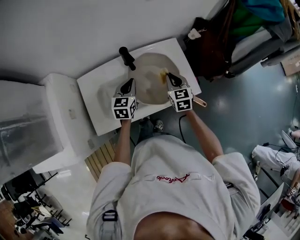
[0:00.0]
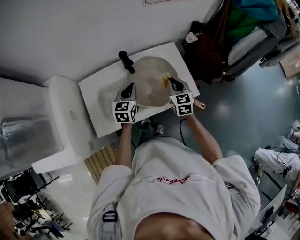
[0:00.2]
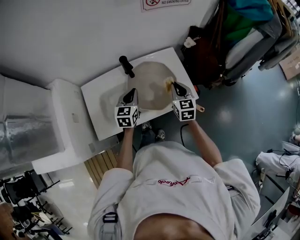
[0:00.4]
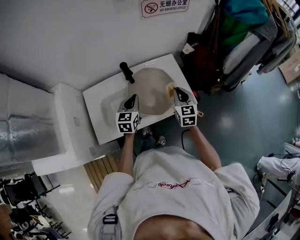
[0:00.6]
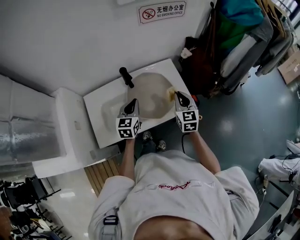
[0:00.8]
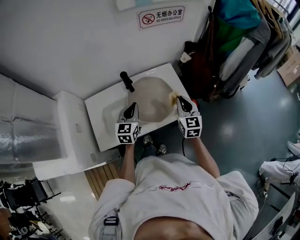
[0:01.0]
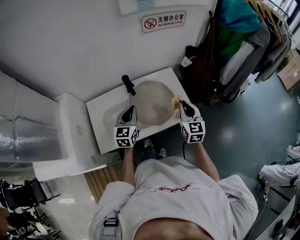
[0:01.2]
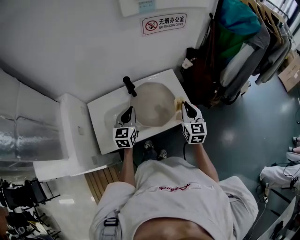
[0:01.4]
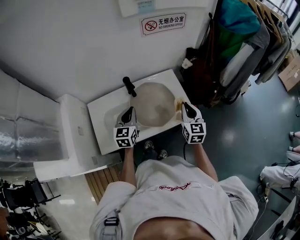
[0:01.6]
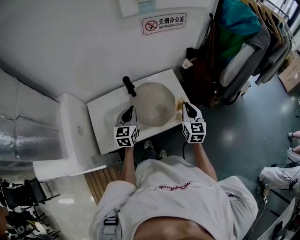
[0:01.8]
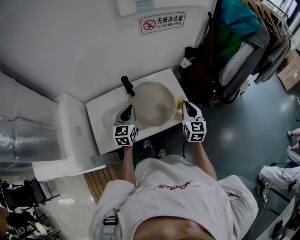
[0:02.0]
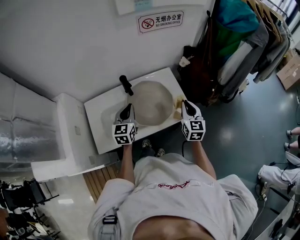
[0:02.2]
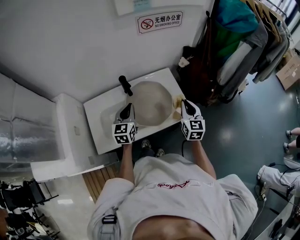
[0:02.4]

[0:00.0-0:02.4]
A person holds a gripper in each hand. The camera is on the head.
0:00.0 to 0:01.2: The left gripper heads upward and backward, covering about 10 cm. The right gripper heads upward, to the right and backward, covering about 15 cm.
0:01.2 to 0:02.4: The grippers make only small movements.

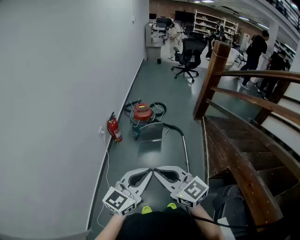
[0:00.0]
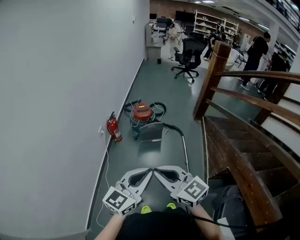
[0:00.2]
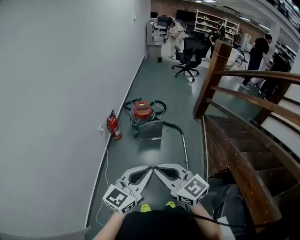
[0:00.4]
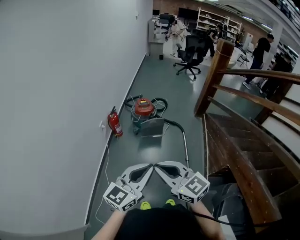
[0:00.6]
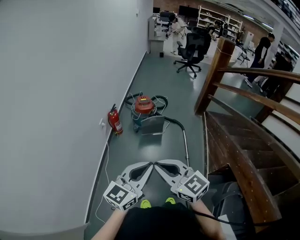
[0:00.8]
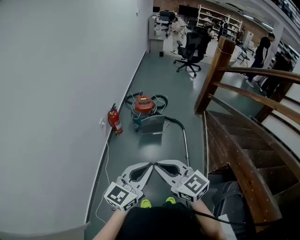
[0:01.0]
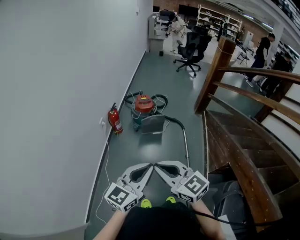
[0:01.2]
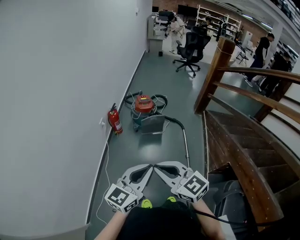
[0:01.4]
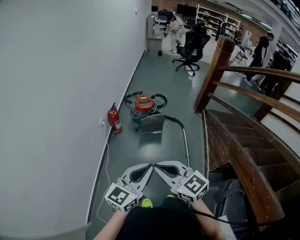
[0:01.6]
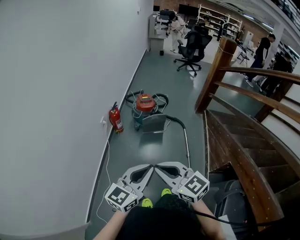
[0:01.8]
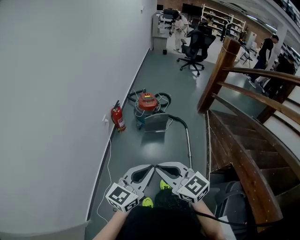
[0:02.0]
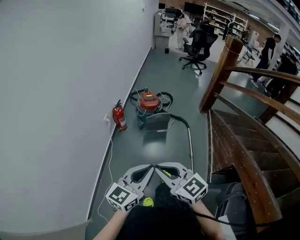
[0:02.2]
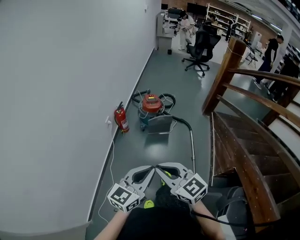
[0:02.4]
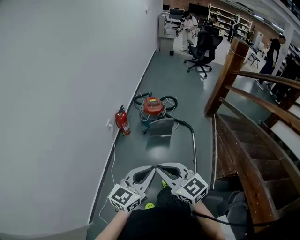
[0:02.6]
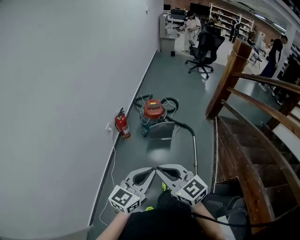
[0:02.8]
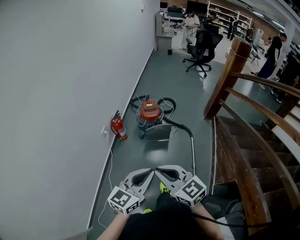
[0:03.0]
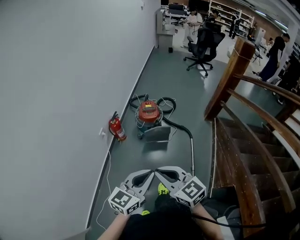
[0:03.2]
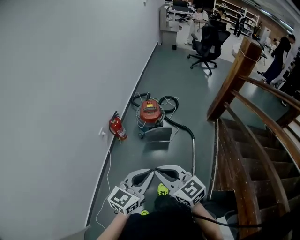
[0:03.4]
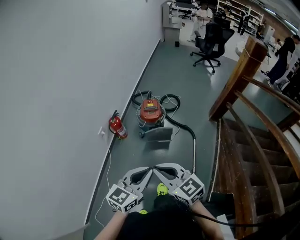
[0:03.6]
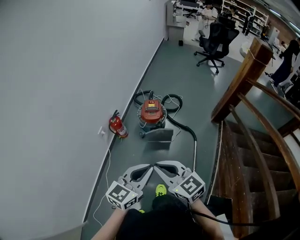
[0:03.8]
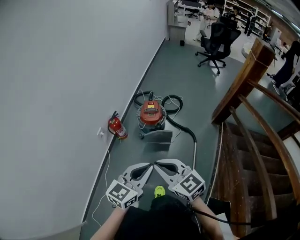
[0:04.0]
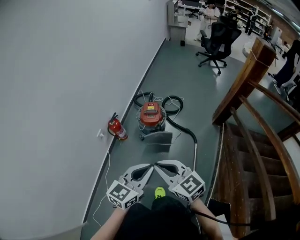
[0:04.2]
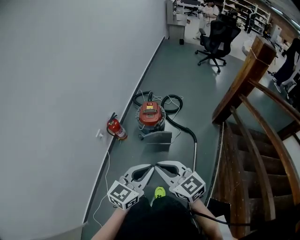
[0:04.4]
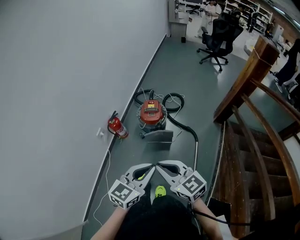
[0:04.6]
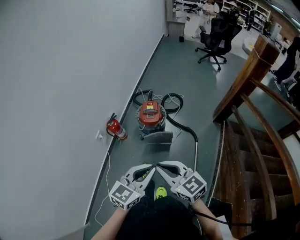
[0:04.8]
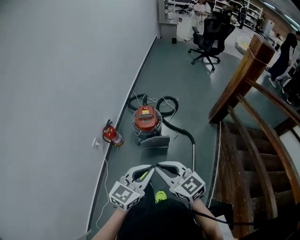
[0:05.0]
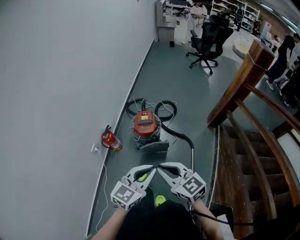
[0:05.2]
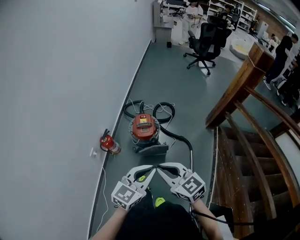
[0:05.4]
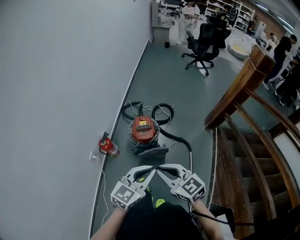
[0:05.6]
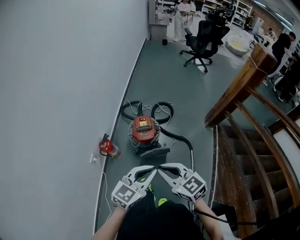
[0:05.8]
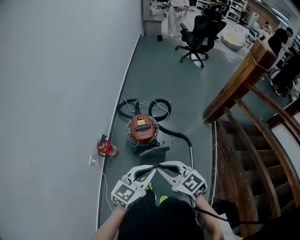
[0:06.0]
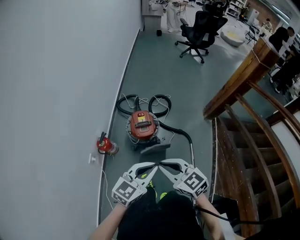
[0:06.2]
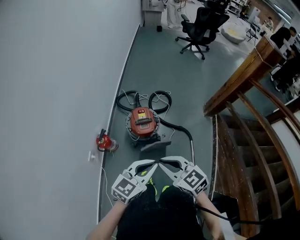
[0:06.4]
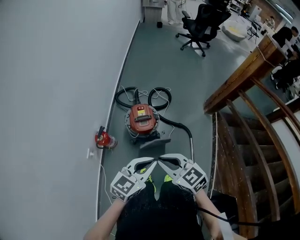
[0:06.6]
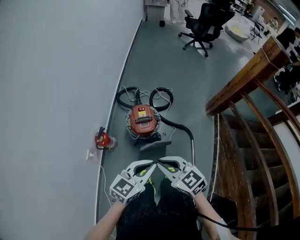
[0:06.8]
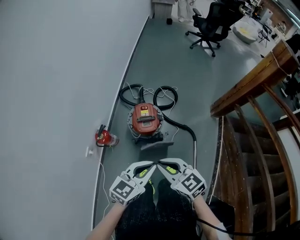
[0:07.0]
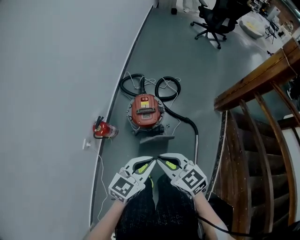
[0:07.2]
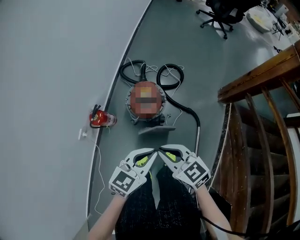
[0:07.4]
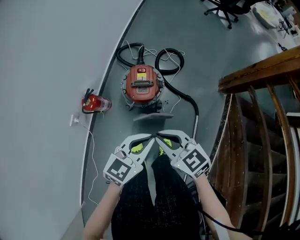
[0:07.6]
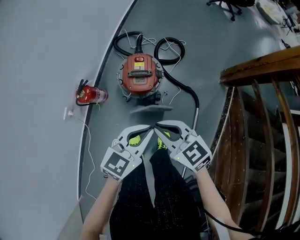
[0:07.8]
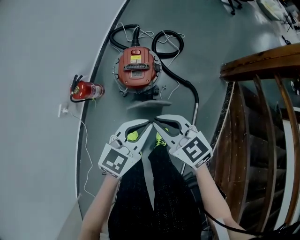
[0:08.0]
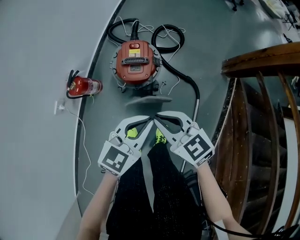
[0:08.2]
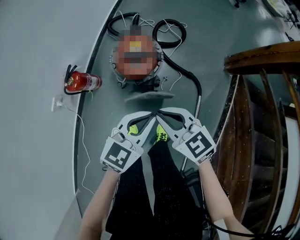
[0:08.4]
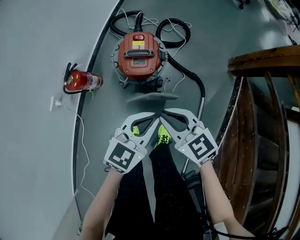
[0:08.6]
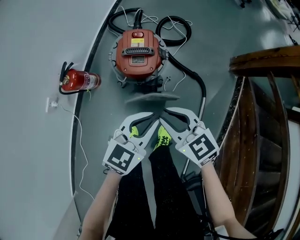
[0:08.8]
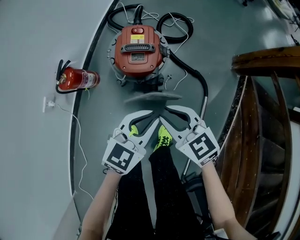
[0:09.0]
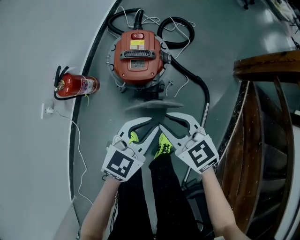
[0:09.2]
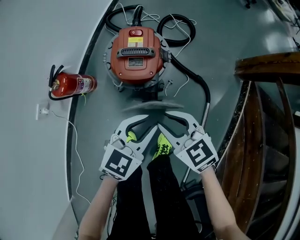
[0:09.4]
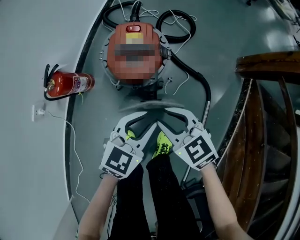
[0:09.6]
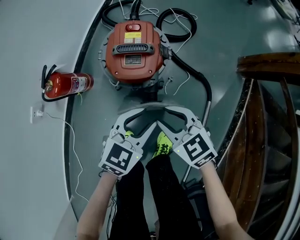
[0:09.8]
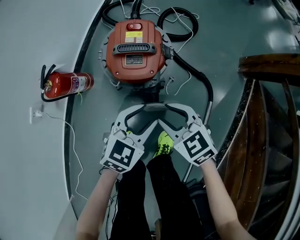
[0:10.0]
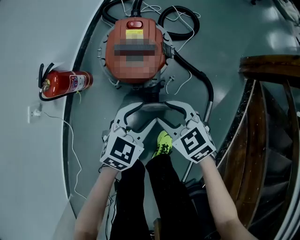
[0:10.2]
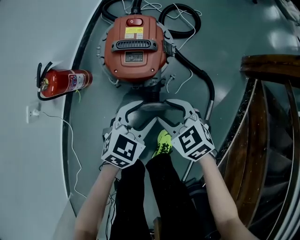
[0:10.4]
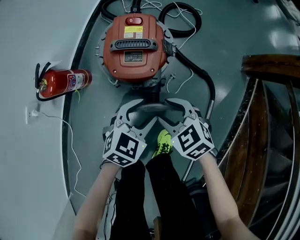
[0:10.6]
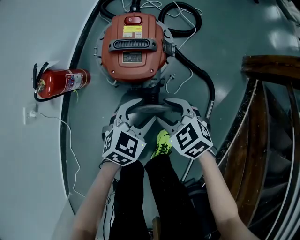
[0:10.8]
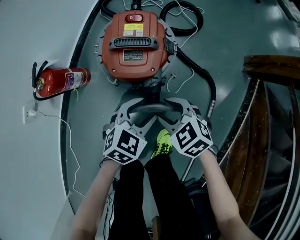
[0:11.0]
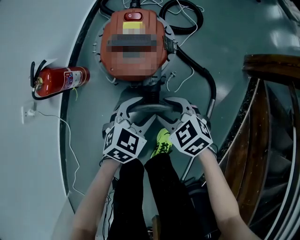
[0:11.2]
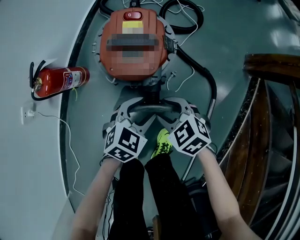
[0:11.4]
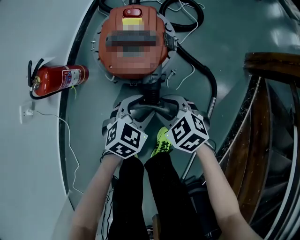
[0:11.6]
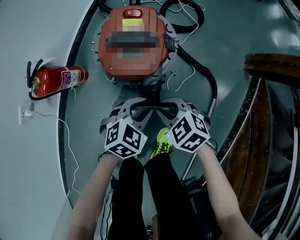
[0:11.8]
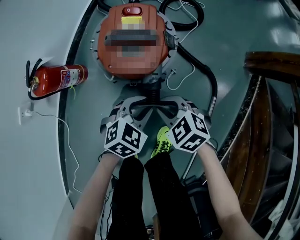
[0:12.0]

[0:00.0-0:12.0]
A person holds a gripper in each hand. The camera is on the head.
0:00.0 to 0:01.6: The grippers stay close to where they were, moving slightly.
0:01.6 to 0:03.0: Both grippers travel together forward, approximately 15 cm.
0:03.0 to 0:04.4: Both grippers move forward and to the right, some 20 cm.
0:04.4 to 0:06.0: The two grippers go some 15 cm forward.
0:06.0 to 0:07.6: The two grippers go roughly 20 cm downward and forward.
0:07.6 to 0:09.0: The grippers both shift downward by approximately 20 cm.
0:09.0 to 0:10.4: Both grippers travel together downward, roughly 15 cm. The right gripper opens. The left gripper opens.
0:10.4 to 0:12.0: Both grippers travel together downward, approximately 5 cm. The right gripper closes; the left gripper closes its fingers.

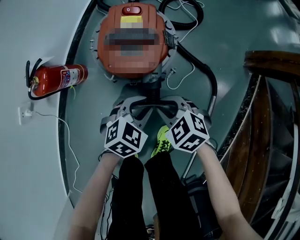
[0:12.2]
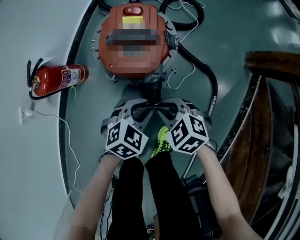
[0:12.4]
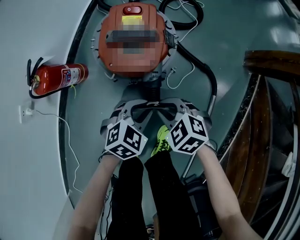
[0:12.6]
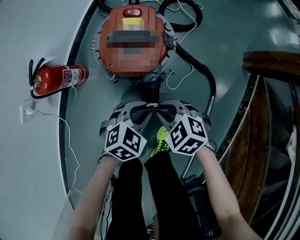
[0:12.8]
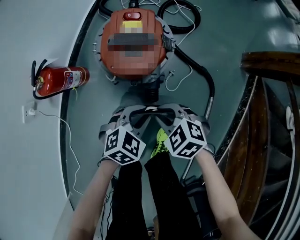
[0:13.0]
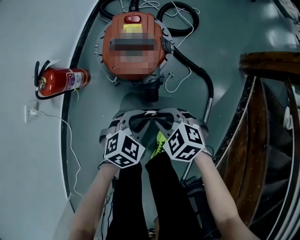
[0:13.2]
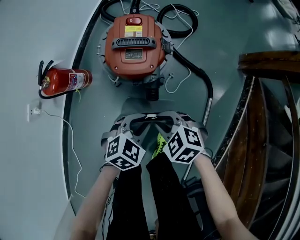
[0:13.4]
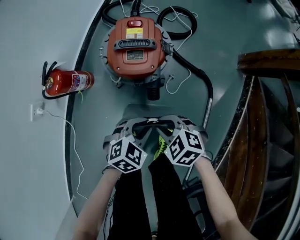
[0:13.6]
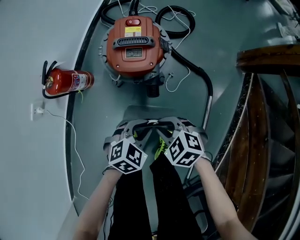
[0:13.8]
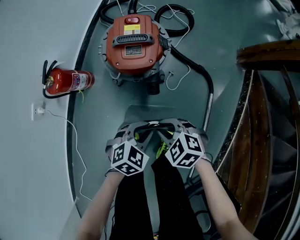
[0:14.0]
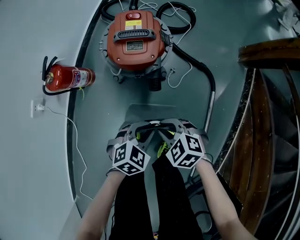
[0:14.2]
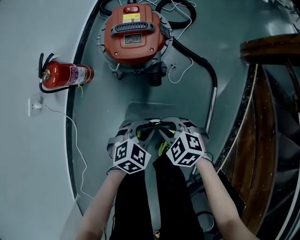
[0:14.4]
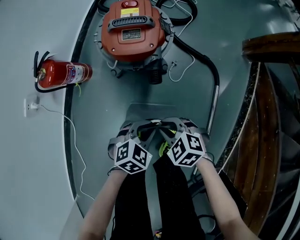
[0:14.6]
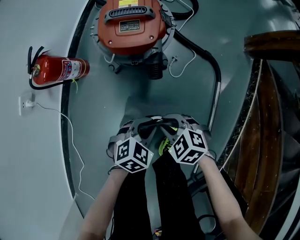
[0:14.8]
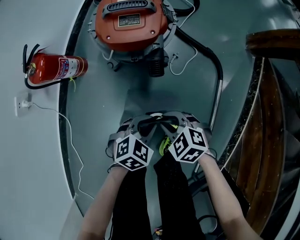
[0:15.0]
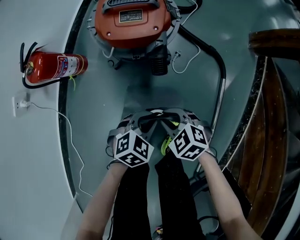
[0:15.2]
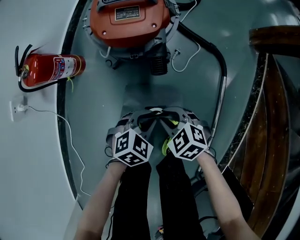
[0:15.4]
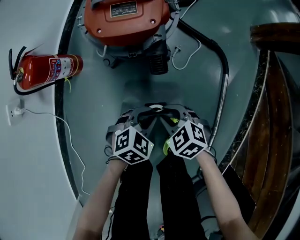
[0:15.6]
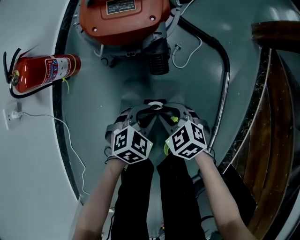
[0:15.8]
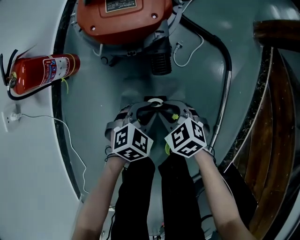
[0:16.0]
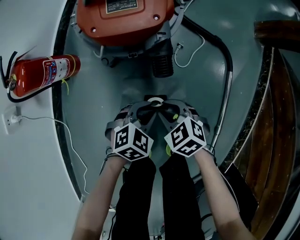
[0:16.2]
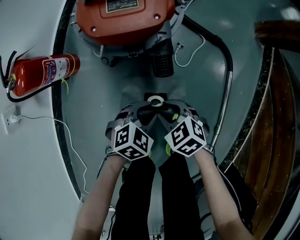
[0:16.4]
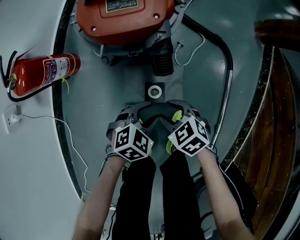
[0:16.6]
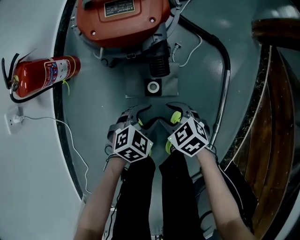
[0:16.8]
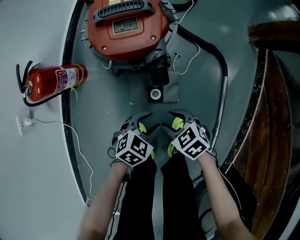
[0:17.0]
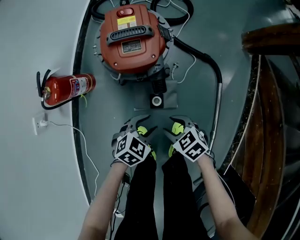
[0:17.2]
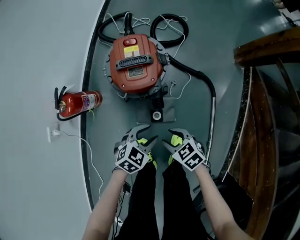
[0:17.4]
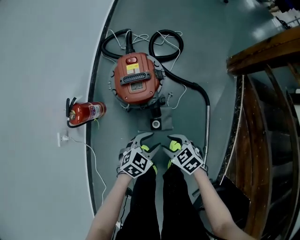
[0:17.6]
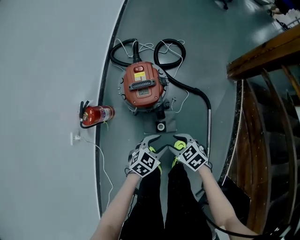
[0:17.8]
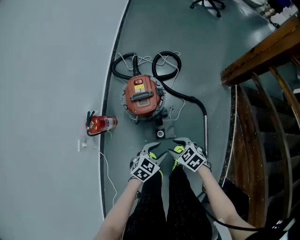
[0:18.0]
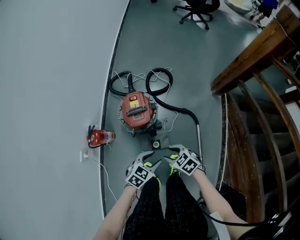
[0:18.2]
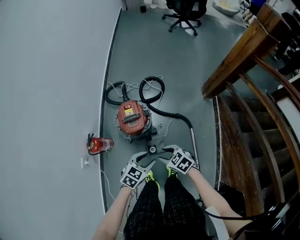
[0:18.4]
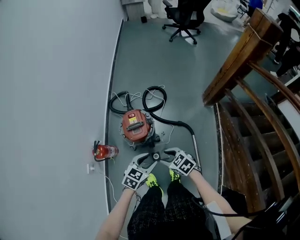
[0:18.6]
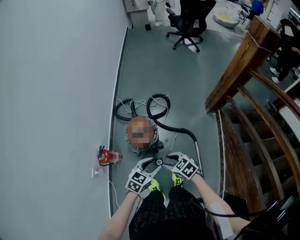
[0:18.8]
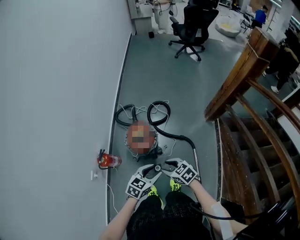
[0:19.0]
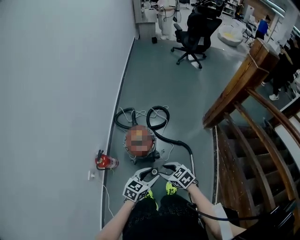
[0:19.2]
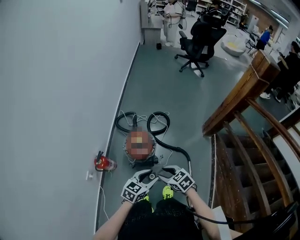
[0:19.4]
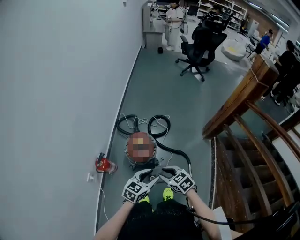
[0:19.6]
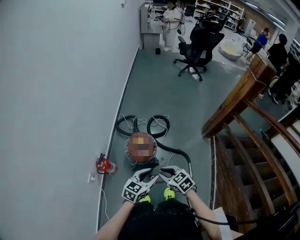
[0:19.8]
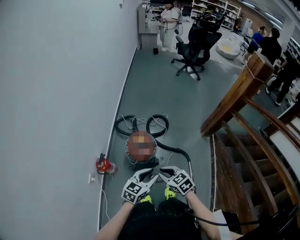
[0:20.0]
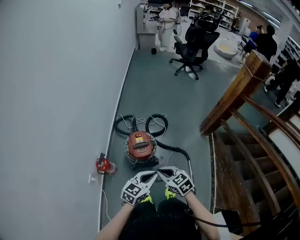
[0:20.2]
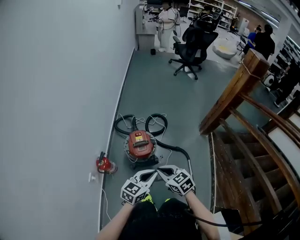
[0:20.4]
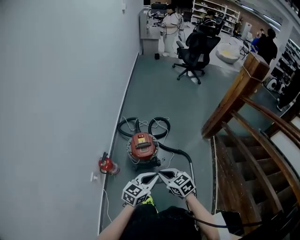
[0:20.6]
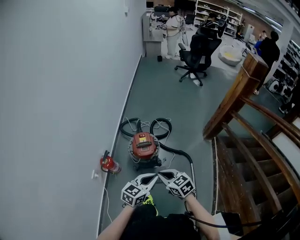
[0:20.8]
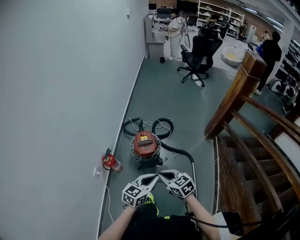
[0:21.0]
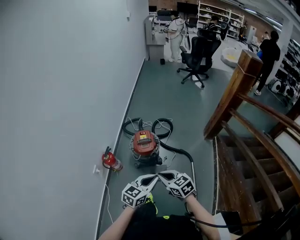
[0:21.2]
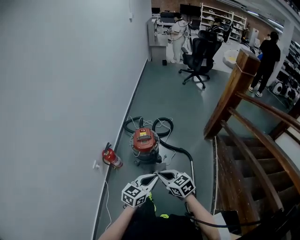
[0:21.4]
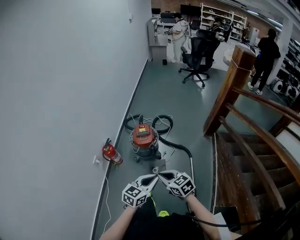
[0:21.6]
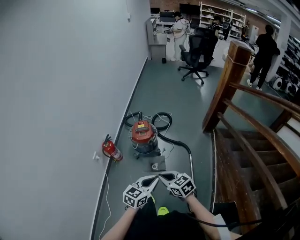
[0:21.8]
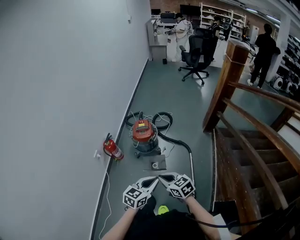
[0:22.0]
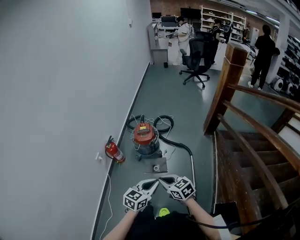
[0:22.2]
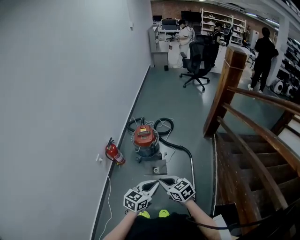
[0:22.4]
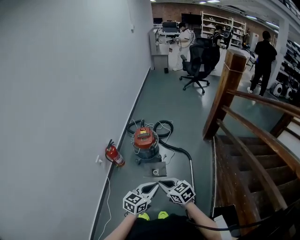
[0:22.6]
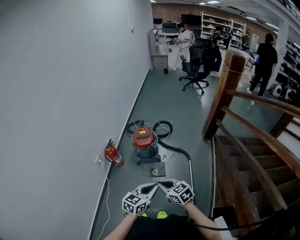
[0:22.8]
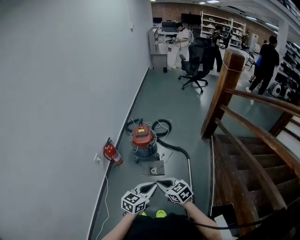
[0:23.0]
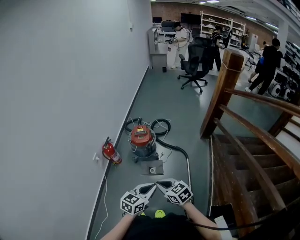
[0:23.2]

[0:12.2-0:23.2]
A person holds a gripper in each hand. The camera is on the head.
0:12.2 to 0:13.8: The right gripper changes place by approximately 10 cm, while the left gripper moves roughly 10 cm.
0:13.8 to 0:15.4: Both grippers move downward, some 10 cm.
0:15.4 to 0:17.0: The left gripper opens its fingers. The right gripper opens.
0:17.0 to 0:18.4: The two grippers go roughly 35 cm upward.
0:18.4 to 0:20.0: Both grippers travel together upward, approximately 15 cm. The right gripper closes its fingers, while the left gripper rotates approximately 20 degrees.
0:20.0 to 0:21.6: The two grippers go roughly 20 cm backward. The left gripper closes up.
0:21.6 to 0:23.2: The grippers both shift backward by about 10 cm.
